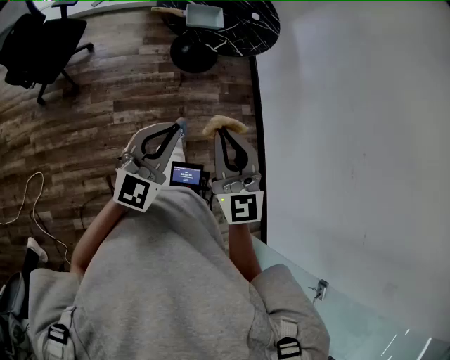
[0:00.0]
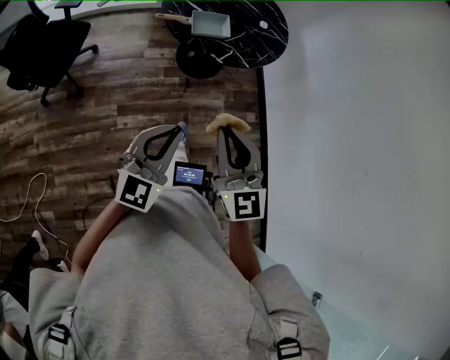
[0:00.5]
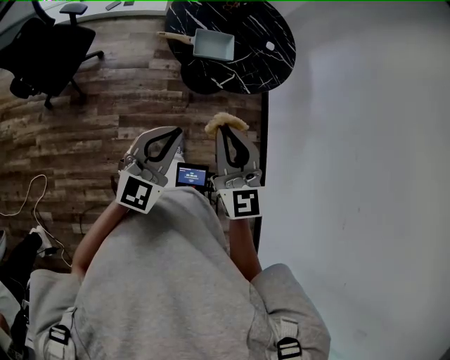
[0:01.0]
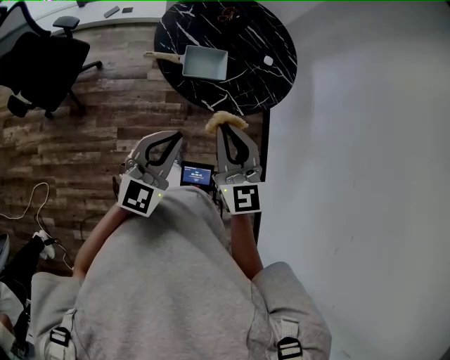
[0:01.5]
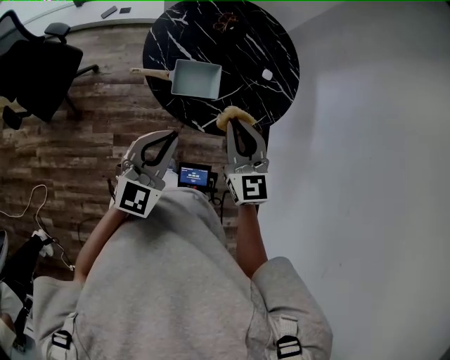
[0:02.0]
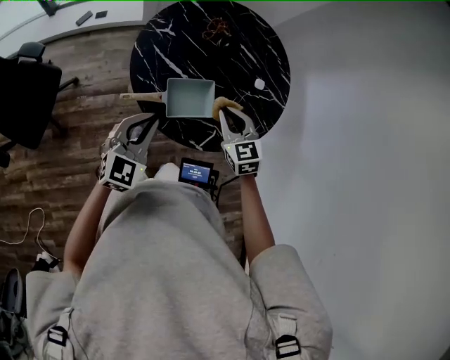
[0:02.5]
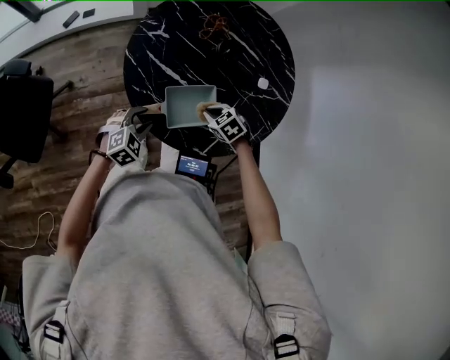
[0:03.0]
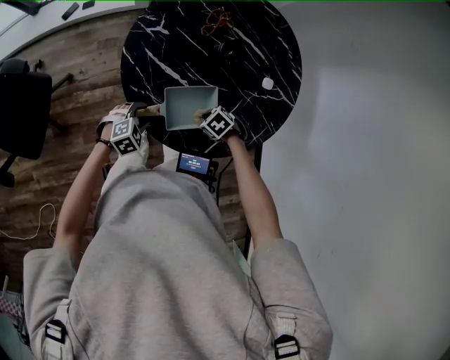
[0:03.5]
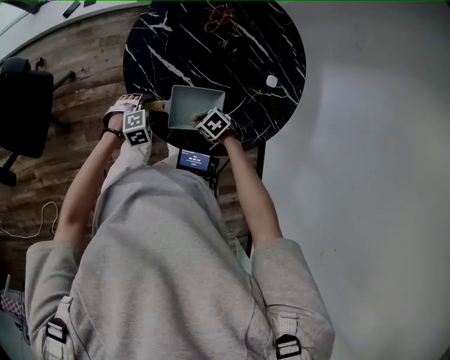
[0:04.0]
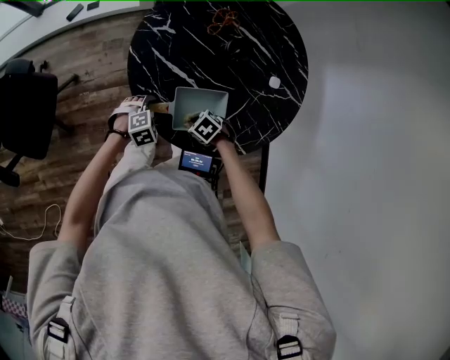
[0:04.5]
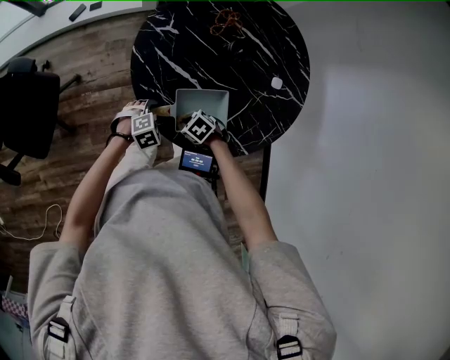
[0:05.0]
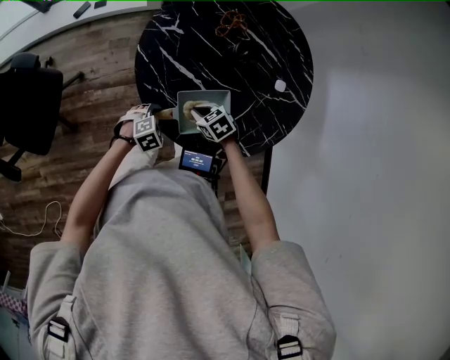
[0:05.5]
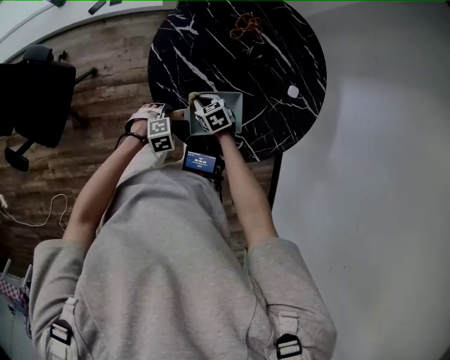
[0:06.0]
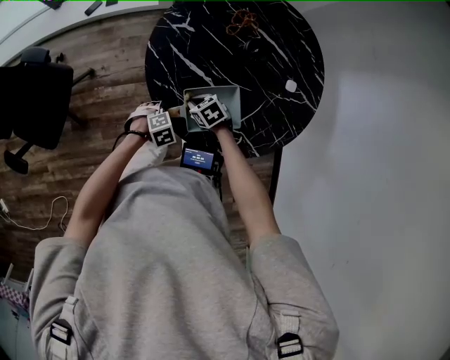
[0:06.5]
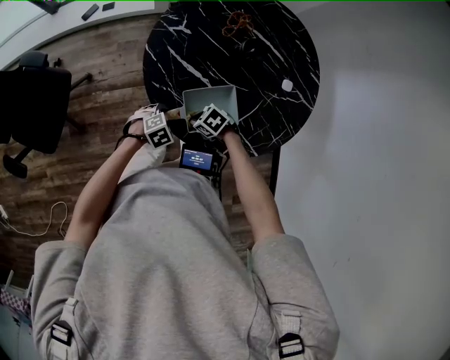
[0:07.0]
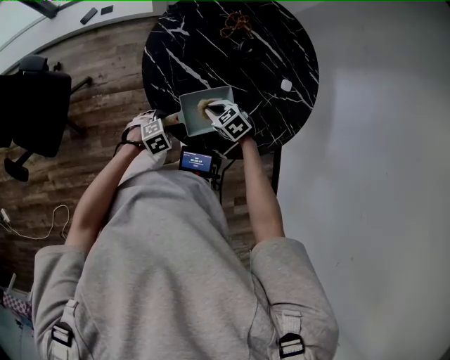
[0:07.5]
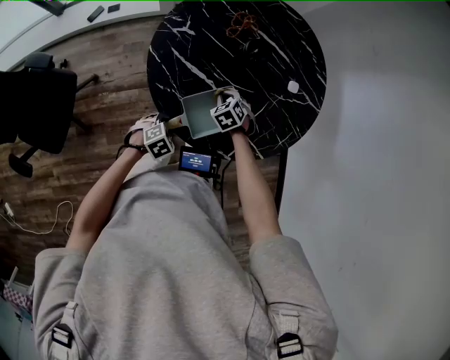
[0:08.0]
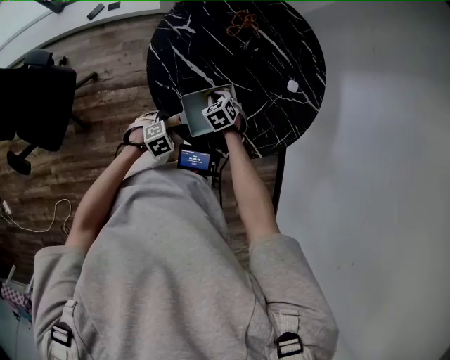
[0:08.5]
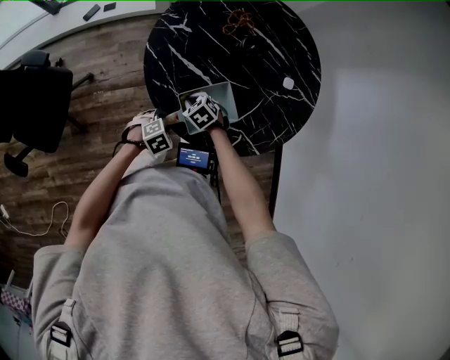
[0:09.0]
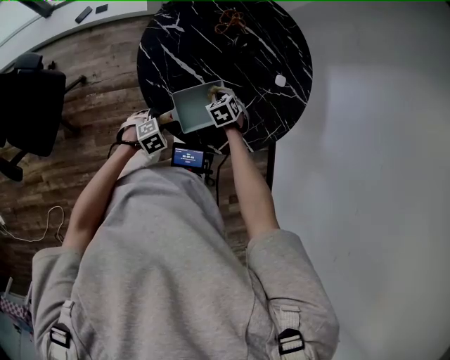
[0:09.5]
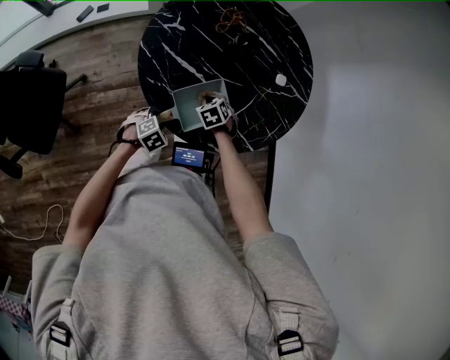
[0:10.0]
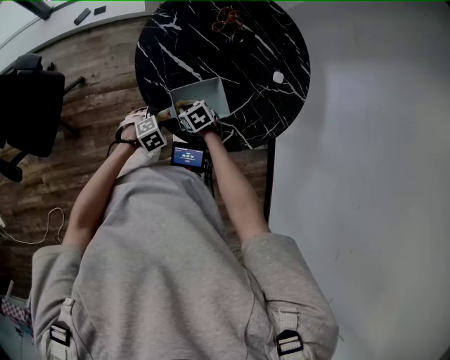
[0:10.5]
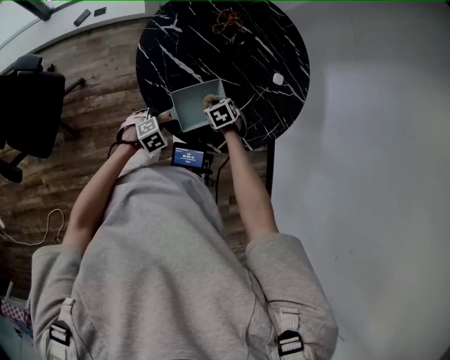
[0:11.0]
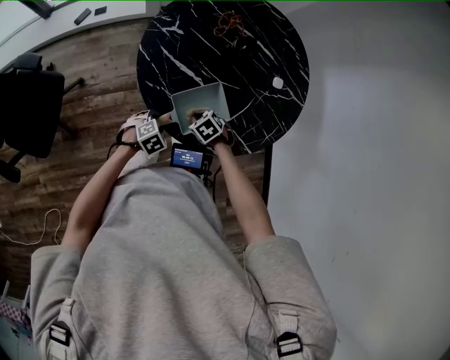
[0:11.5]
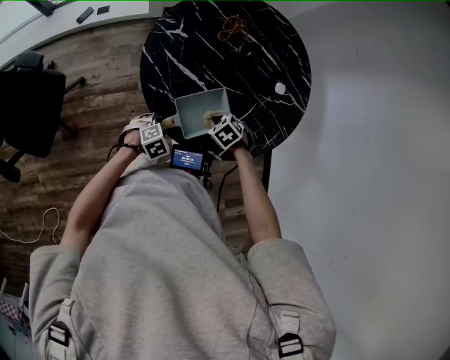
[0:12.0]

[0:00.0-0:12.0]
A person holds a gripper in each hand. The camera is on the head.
0:00.0 to 0:02.0: The two grippers travel together, forward, approximately 50 cm.
0:02.0 to 0:04.0: Both grippers travel together downward, roughly 40 cm. The left gripper tips its fingers downward by approximately 60 degrees, and opens up. The right gripper tips its fingers downward by some 60 degrees.
0:04.0 to 0:06.0: The right gripper moves roughly 15 cm, and turns by roughly 30 degrees.
0:06.0 to 0:08.0: The right gripper moves some 10 cm, and swivels approximately 20 degrees.
0:08.0 to 0:10.0: The right gripper moves about 10 cm to the left and comes back.
0:10.0 to 0:12.0: The right gripper changes place by approximately 5 cm.

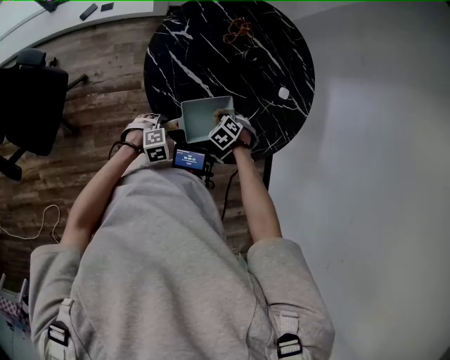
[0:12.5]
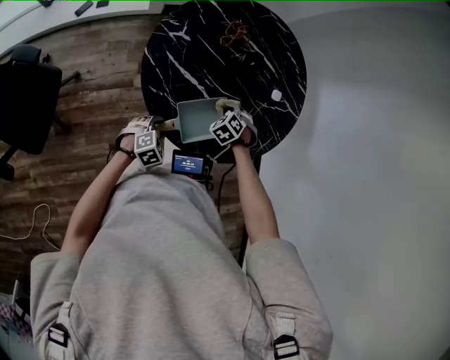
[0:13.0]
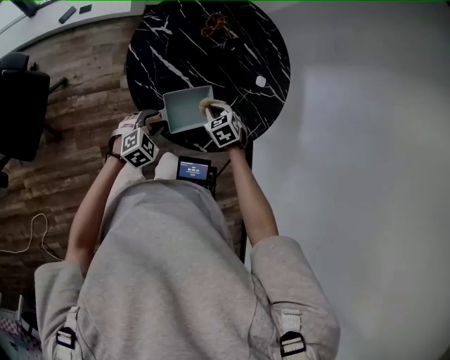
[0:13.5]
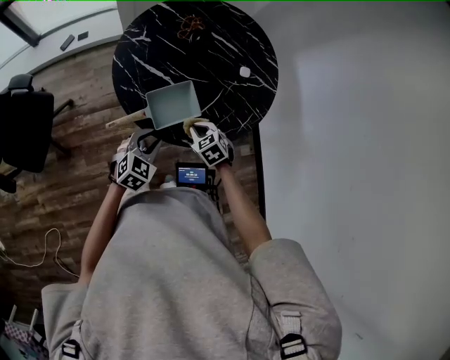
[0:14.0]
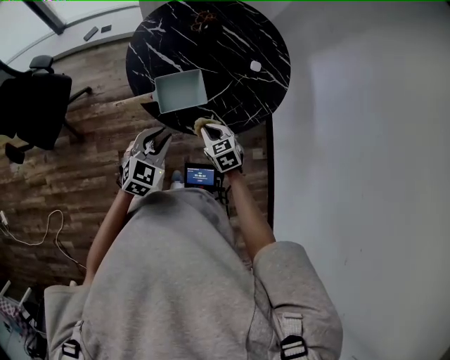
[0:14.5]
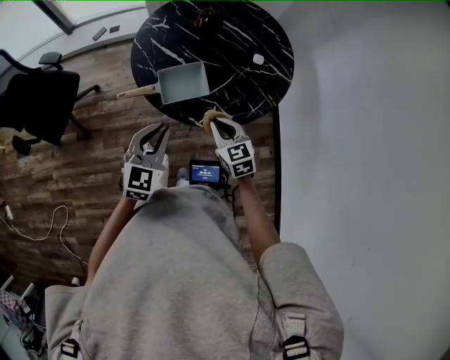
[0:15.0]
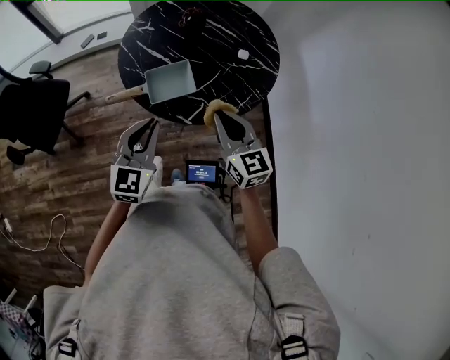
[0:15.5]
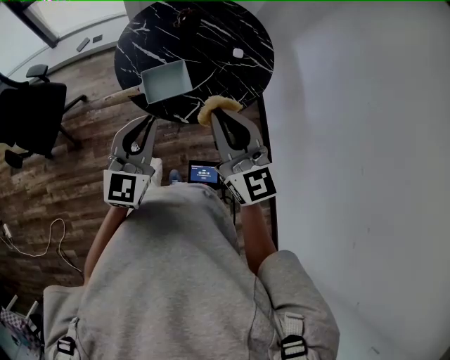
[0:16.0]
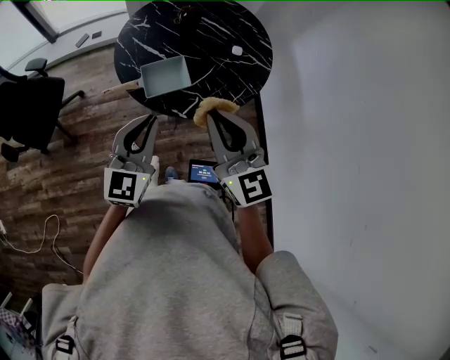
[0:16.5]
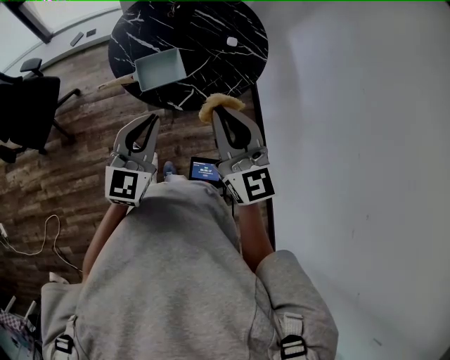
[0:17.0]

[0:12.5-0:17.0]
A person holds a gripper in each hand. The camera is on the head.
0:12.5 to 0:14.5: The left gripper is displaced upward by about 25 cm, and tips its fingers upward by approximately 40 degrees, while the right gripper ends up about 20 cm from where it was, and tips its fingers upward by some 30 degrees.
0:14.5 to 0:17.0: The left gripper is displaced upward and backward by some 15 cm, and changes its angle by roughly 30 degrees. The right gripper shifts roughly 35 cm upward and backward, and angles its fingers upward, by roughly 40 degrees.

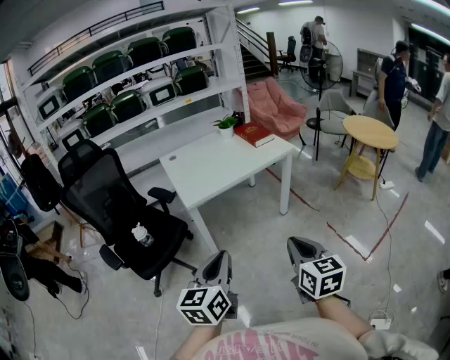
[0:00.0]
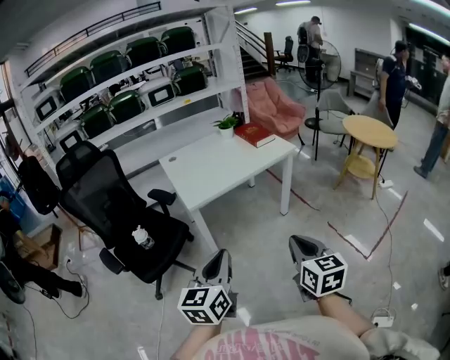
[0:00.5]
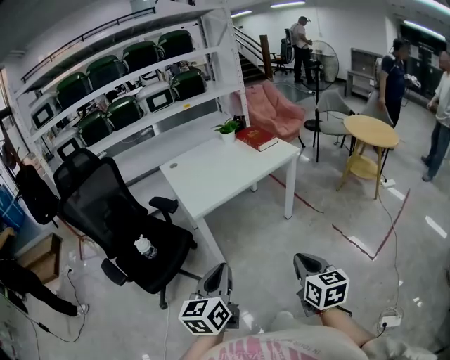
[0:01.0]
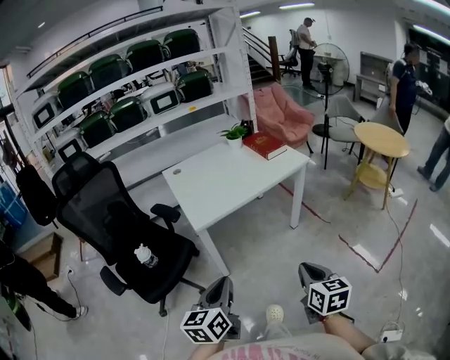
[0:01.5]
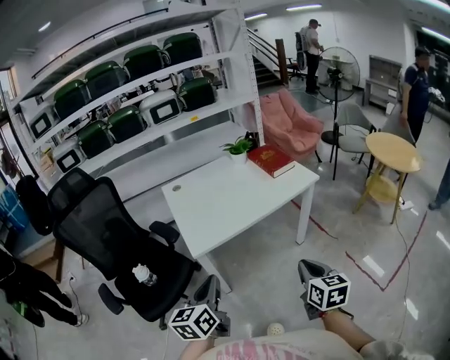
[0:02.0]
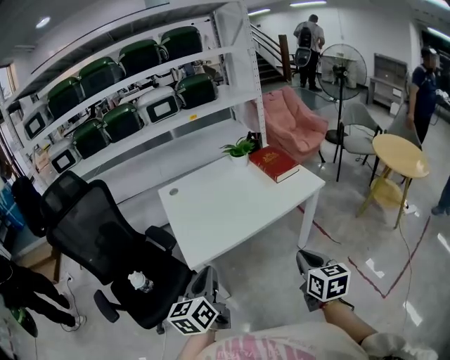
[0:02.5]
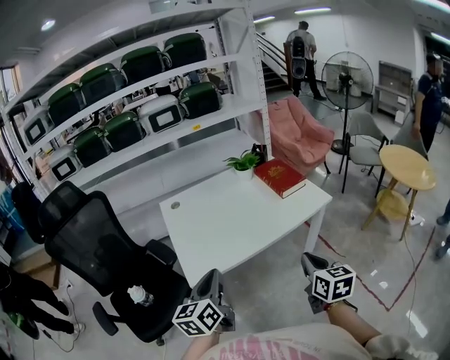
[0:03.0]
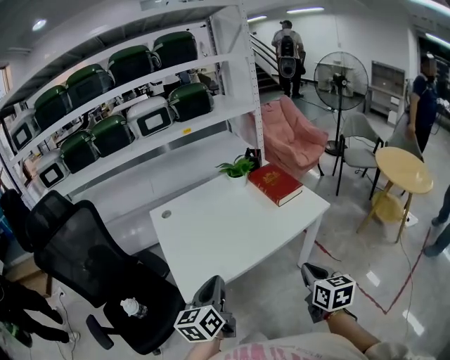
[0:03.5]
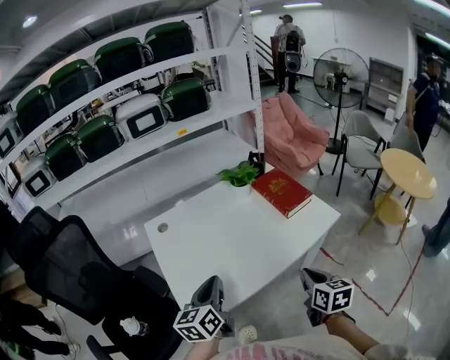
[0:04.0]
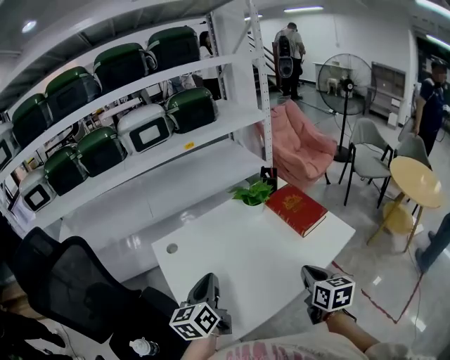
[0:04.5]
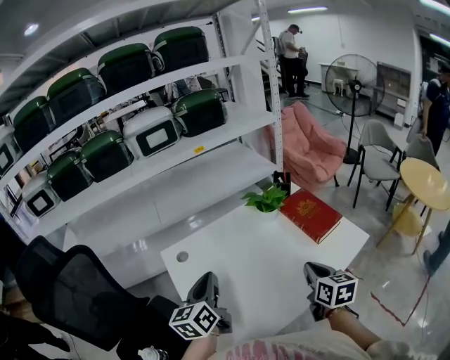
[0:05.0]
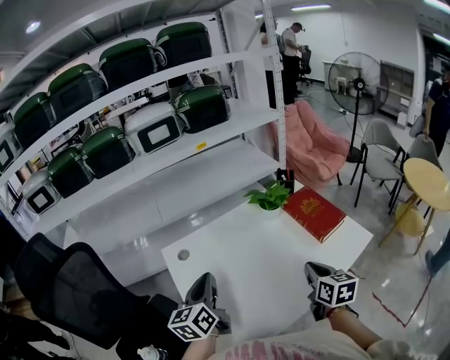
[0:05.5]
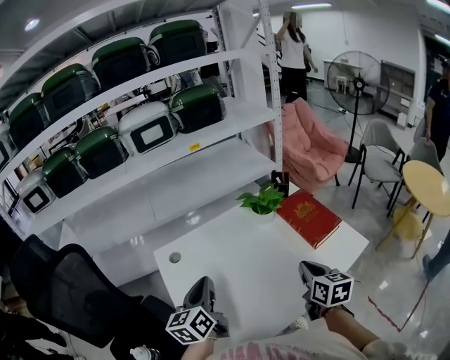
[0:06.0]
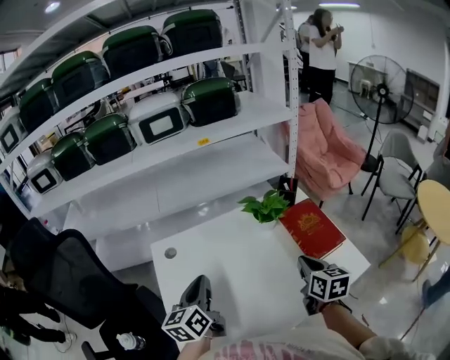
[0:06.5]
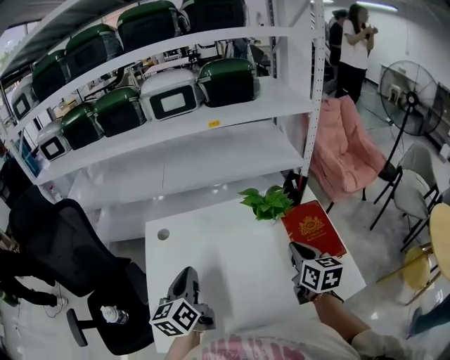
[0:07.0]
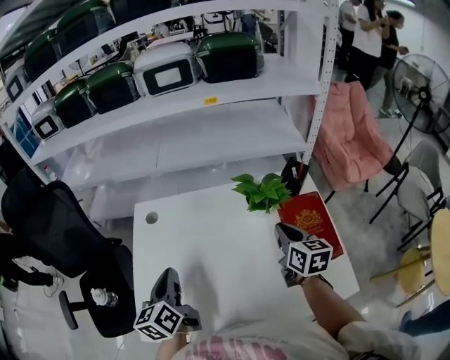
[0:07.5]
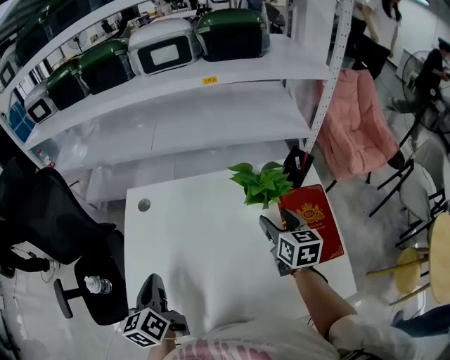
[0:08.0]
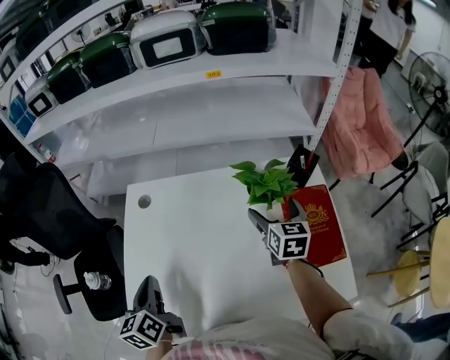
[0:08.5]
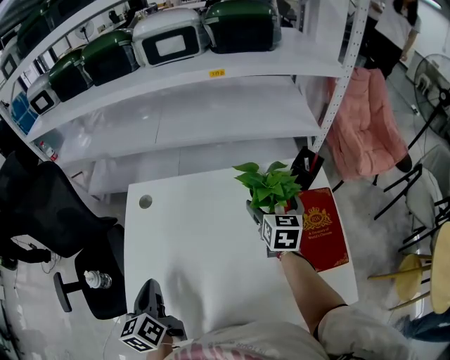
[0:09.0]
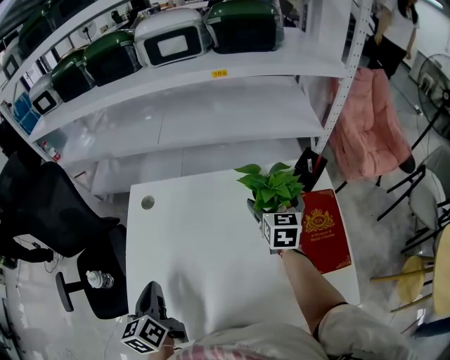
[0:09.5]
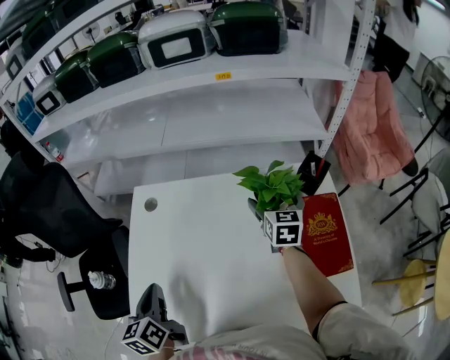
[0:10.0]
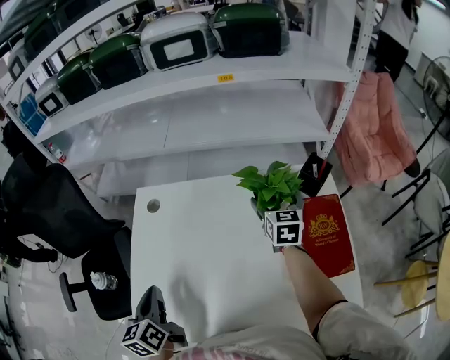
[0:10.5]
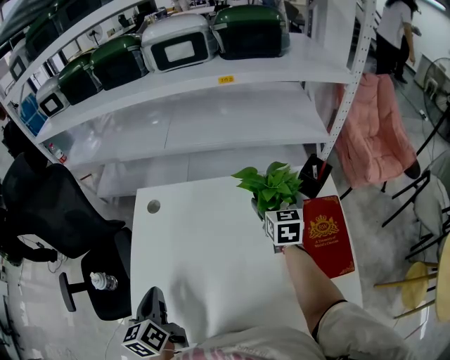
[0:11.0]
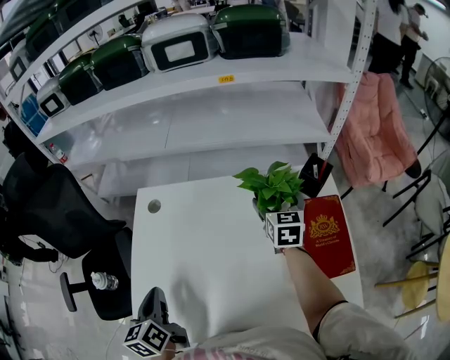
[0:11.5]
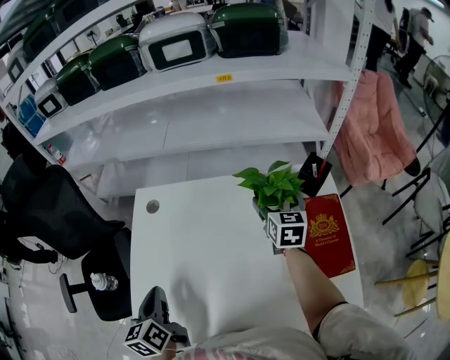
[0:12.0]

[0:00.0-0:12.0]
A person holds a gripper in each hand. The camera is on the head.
0:00.0 to 0:02.0: Both grippers travel together forward, approximately 25 cm.
0:02.0 to 0:04.0: Both grippers travel together forward, approximately 35 cm.
0:04.0 to 0:06.0: The right gripper is displaced forward by about 20 cm, while the left gripper goes about 20 cm forward and to the left.
0:06.0 to 0:08.0: The left gripper shifts about 10 cm downward, and swivels roughly 40 degrees, while the right gripper shifts by approximately 30 cm, changes its angle by roughly 30 degrees, and opens.
0:08.0 to 0:10.0: The right gripper goes roughly 10 cm forward, and opens up.
0:10.0 to 0:12.0: Both grippers stay about where they are.
